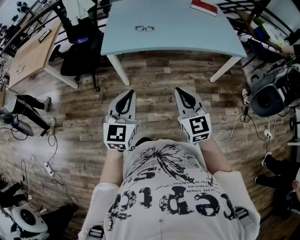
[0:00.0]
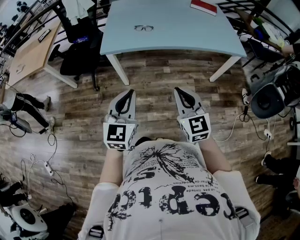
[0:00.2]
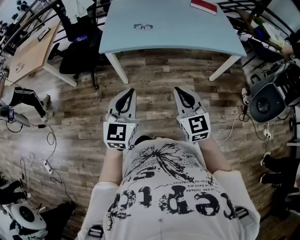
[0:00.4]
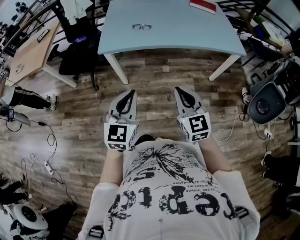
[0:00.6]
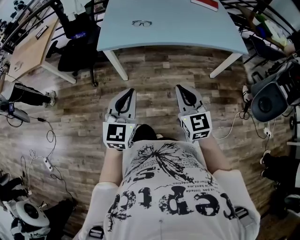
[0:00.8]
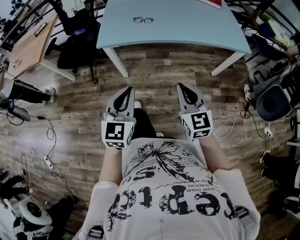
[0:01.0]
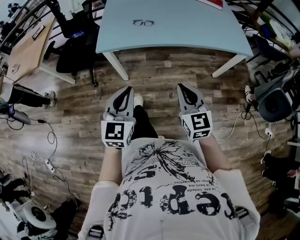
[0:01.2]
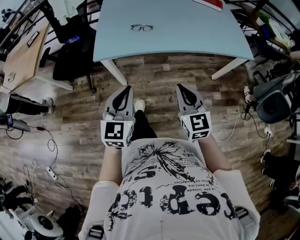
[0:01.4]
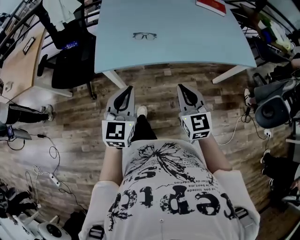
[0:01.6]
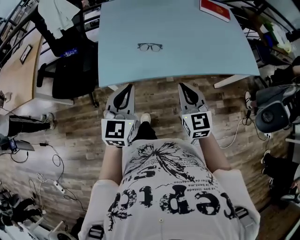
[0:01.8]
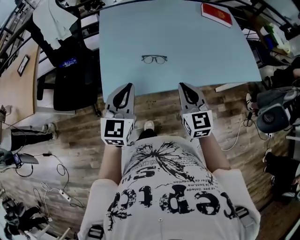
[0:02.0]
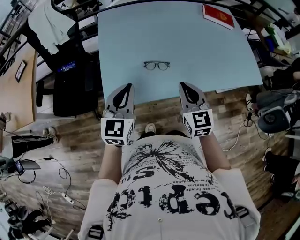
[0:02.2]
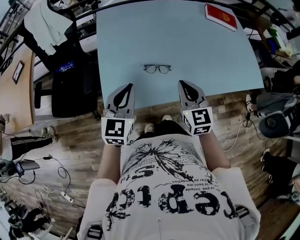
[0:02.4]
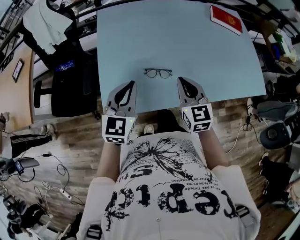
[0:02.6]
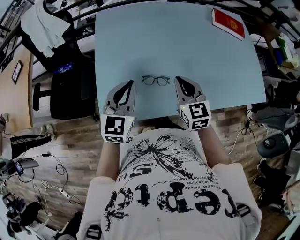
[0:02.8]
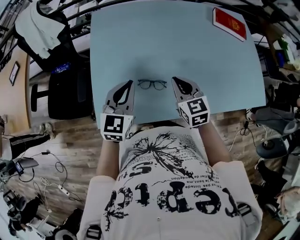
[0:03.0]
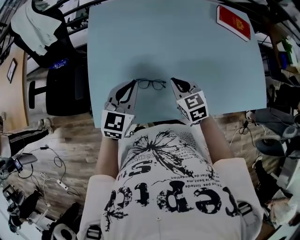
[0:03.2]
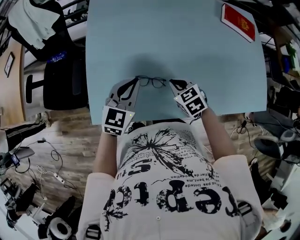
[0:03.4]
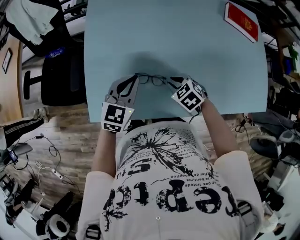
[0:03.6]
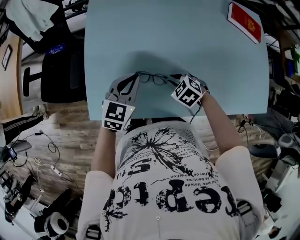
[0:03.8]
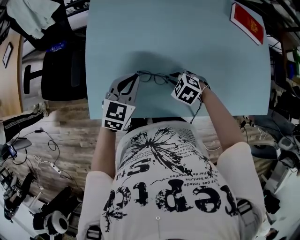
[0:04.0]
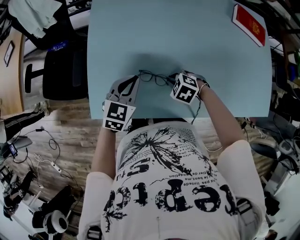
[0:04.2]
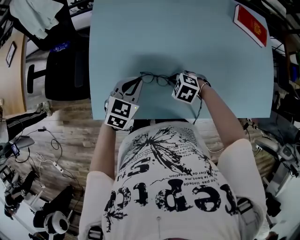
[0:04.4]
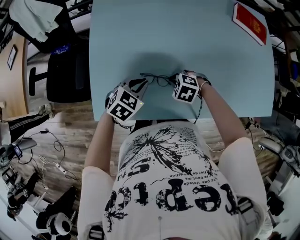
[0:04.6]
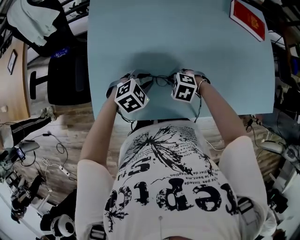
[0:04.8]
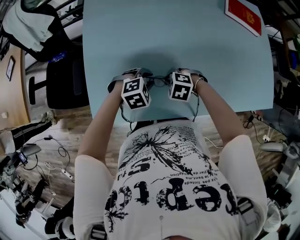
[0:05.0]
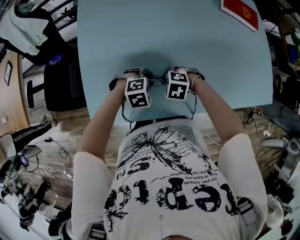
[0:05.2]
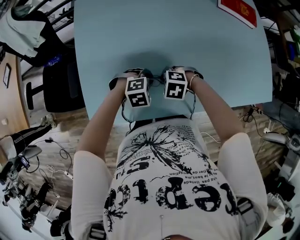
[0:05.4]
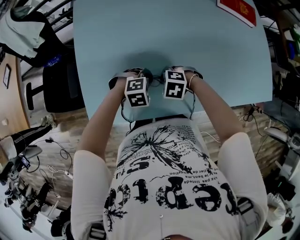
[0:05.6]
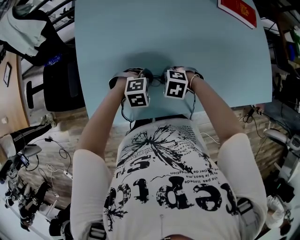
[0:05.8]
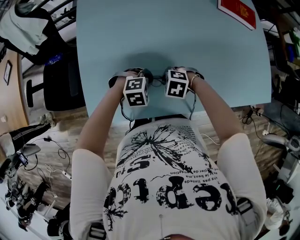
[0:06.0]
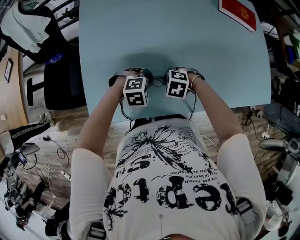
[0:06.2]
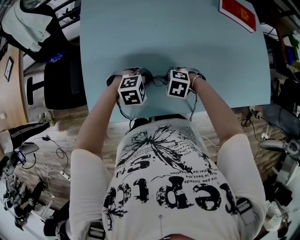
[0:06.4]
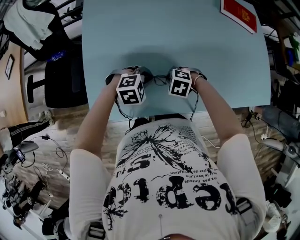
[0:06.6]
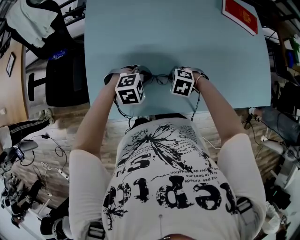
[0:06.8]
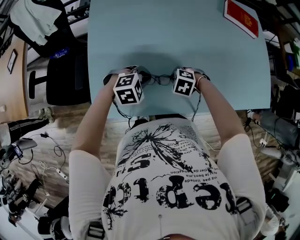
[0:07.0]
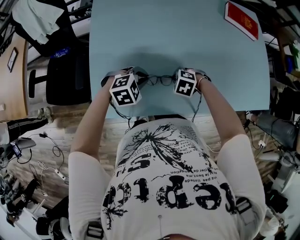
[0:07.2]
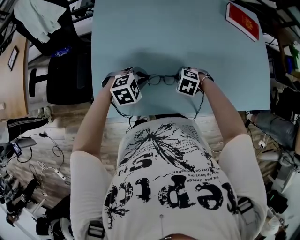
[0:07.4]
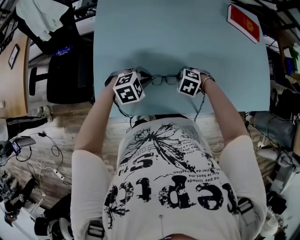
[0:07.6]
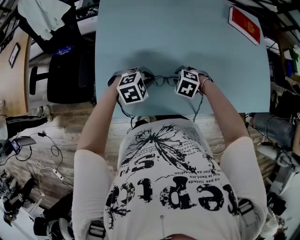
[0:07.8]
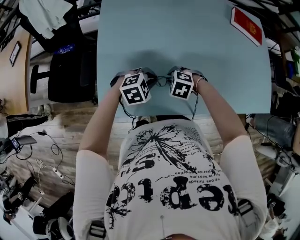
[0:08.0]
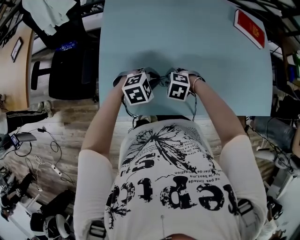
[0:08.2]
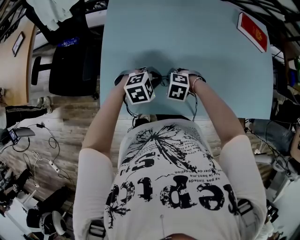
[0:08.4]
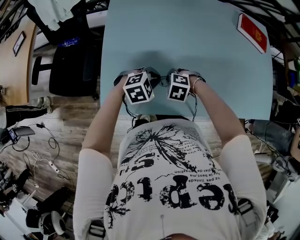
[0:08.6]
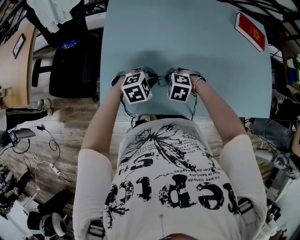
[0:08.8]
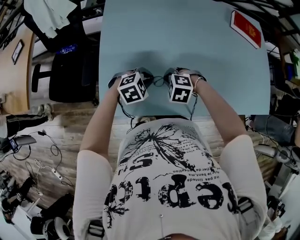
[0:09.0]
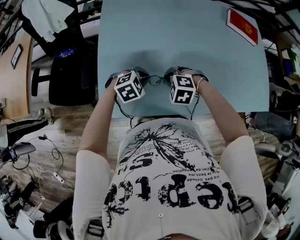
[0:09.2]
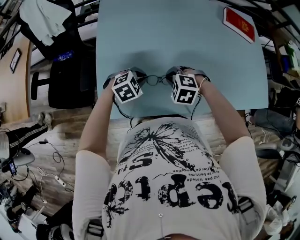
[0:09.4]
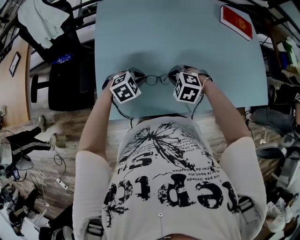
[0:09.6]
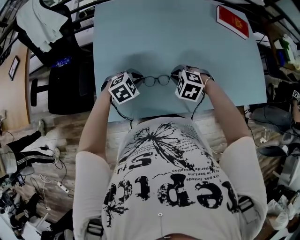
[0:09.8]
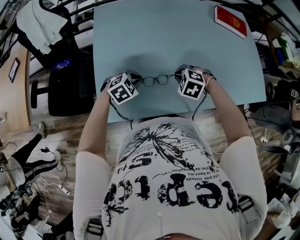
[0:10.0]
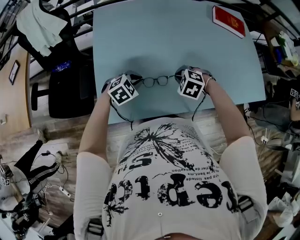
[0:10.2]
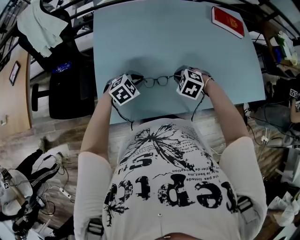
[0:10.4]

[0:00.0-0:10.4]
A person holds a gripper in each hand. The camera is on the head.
0:00.0 to 0:01.4: Both grippers move forward, some 15 cm.
0:01.4 to 0:03.0: Both grippers are carried forward, approximately 50 cm.
0:03.0 to 0:04.4: The two grippers go some 15 cm downward. The left gripper rotates some 20 degrees. Meanwhile the right gripper tips its fingers downward by some 40 degrees.
0:04.4 to 0:06.0: The left gripper moves about 15 cm, and rotates approximately 60 degrees.
0:06.0 to 0:07.4: The left gripper changes place by some 10 cm.
0:07.4 to 0:09.0: The right gripper changes place by roughly 10 cm.
0:09.0 to 0:10.4: The right gripper travels to the right by roughly 5 cm.

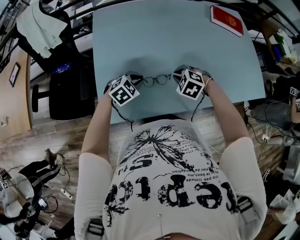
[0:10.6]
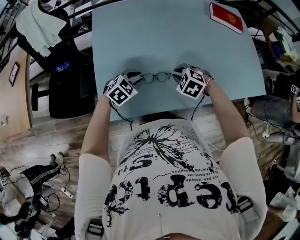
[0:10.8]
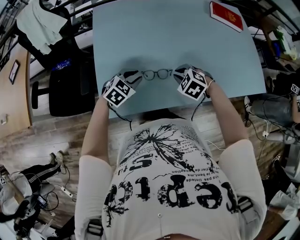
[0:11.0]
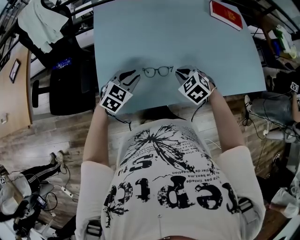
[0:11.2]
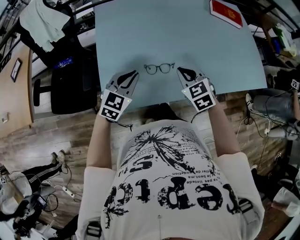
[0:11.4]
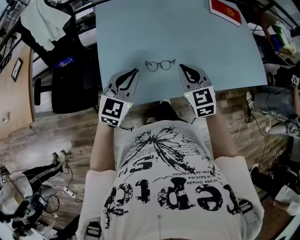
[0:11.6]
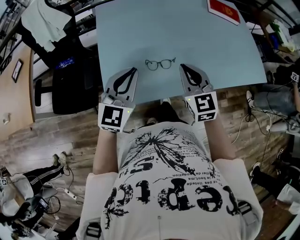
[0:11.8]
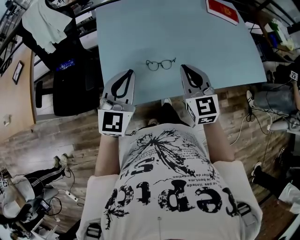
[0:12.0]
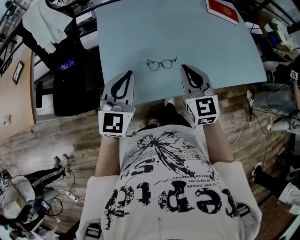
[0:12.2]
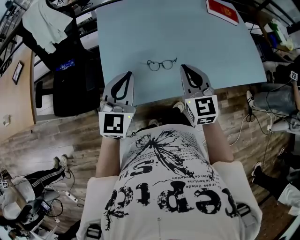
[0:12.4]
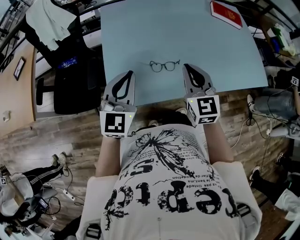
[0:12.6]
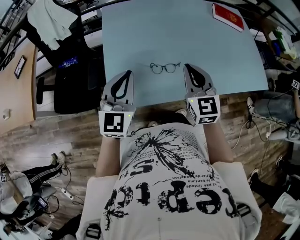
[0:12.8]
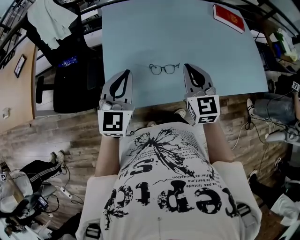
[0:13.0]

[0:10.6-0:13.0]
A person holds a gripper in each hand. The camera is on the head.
0:10.6 to 0:11.8: Both grippers travel together upward and backward, approximately 20 cm. The left gripper points its fingers roughly 40 degrees further upward; the right gripper tips its fingers upward by some 50 degrees.
0:11.8 to 0:13.0: The grippers stay close to where they were, moving slightly.

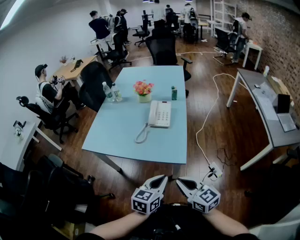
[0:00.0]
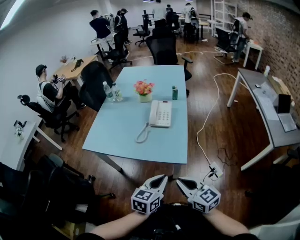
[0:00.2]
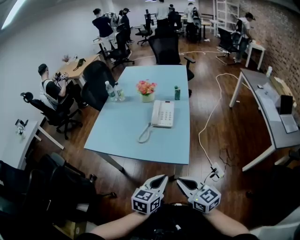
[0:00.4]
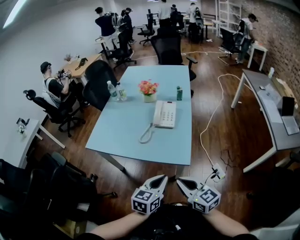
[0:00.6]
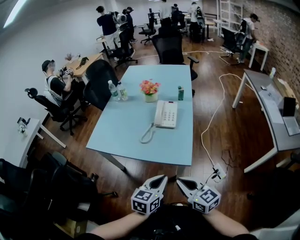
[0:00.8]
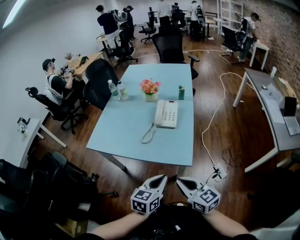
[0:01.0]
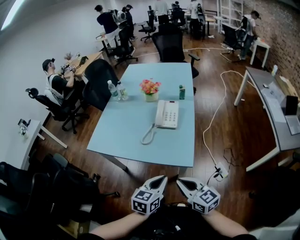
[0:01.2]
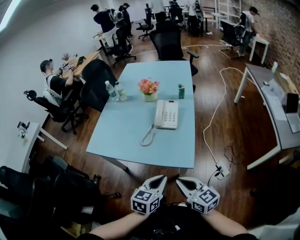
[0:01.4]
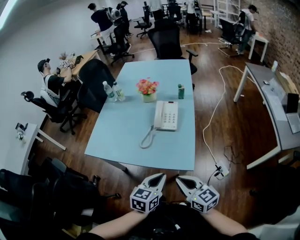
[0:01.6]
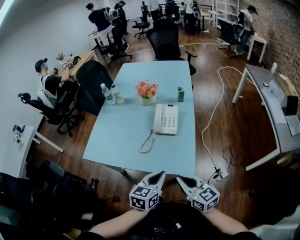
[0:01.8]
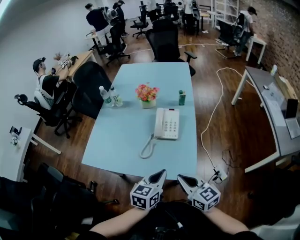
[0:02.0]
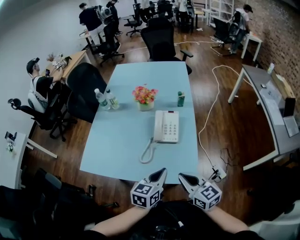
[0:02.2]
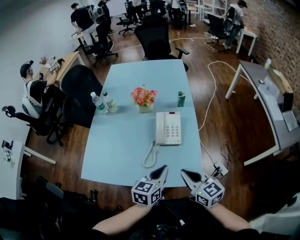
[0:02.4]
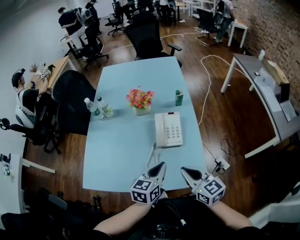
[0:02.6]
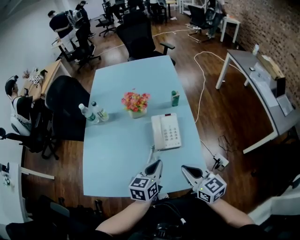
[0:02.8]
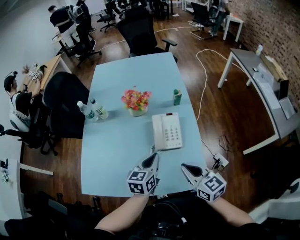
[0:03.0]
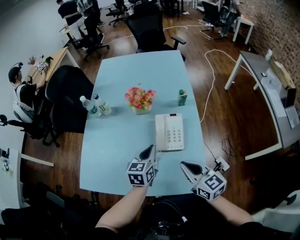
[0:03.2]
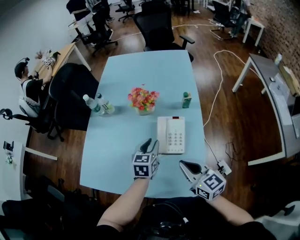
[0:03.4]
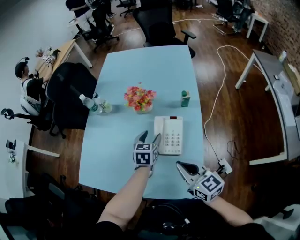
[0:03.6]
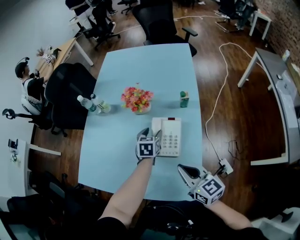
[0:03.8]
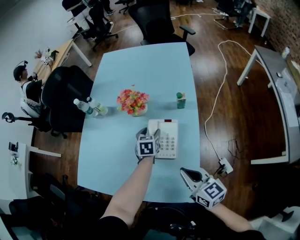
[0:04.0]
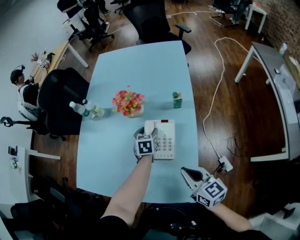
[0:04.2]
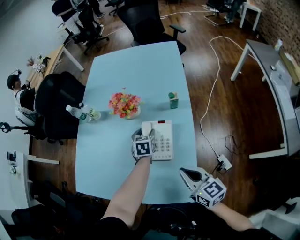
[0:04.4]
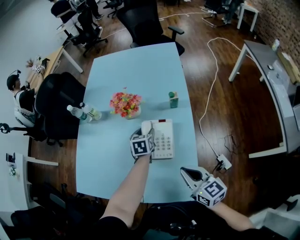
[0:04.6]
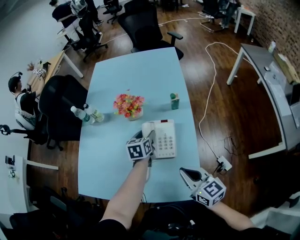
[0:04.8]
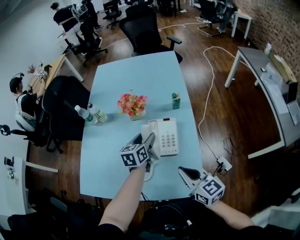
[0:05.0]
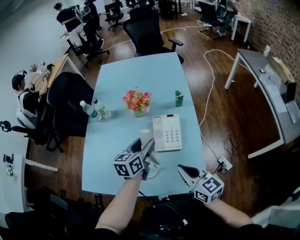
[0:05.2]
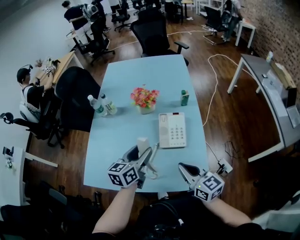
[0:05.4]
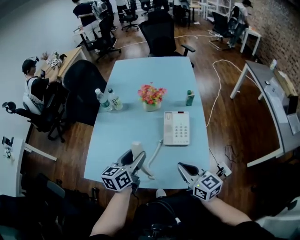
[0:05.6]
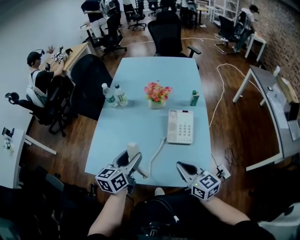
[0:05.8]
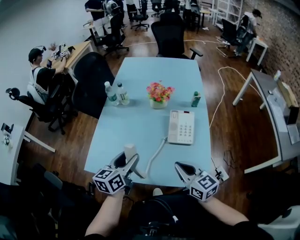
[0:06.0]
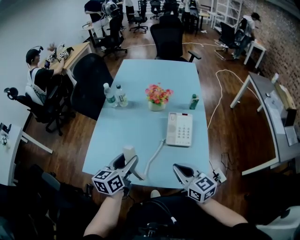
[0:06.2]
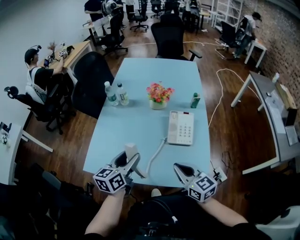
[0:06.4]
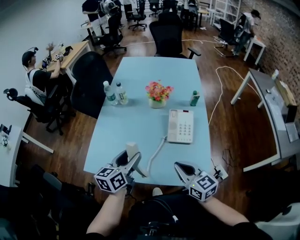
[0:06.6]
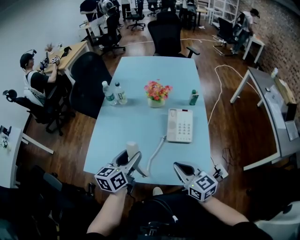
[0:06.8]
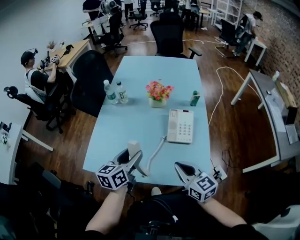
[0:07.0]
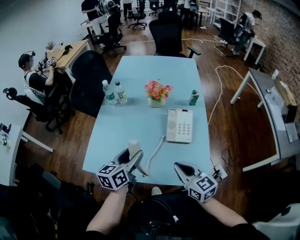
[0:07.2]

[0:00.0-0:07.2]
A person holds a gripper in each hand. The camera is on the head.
0:00.0 to 0:01.4: The left gripper changes place by about 5 cm; the right gripper ends up about 5 cm from where it was.
0:01.4 to 0:02.8: Both grippers move forward, some 25 cm.
0:02.8 to 0:04.4: The left gripper is displaced forward and downward by approximately 30 cm, turns by some 30 degrees, and opens. The right gripper goes some 15 cm to the right and forward.
0:04.4 to 0:05.8: The left gripper goes some 35 cm backward, to the left and upward, and points its fingers approximately 30 degrees further upward. The right gripper goes approximately 20 cm to the left and backward.
0:05.8 to 0:07.2: The grippers make only small movements.

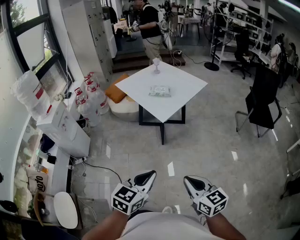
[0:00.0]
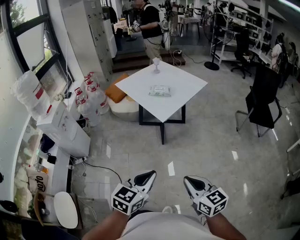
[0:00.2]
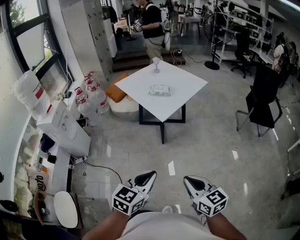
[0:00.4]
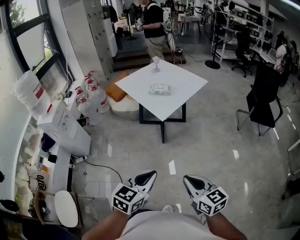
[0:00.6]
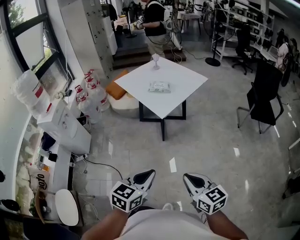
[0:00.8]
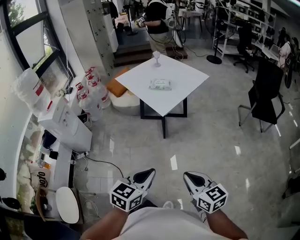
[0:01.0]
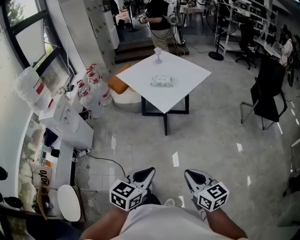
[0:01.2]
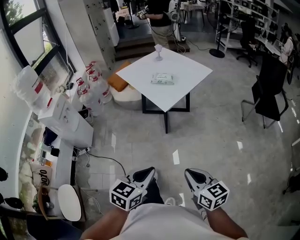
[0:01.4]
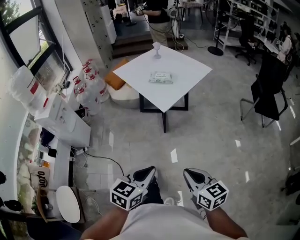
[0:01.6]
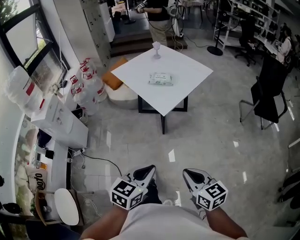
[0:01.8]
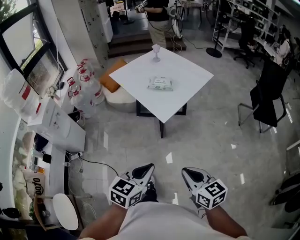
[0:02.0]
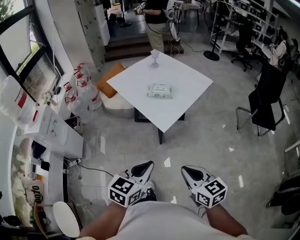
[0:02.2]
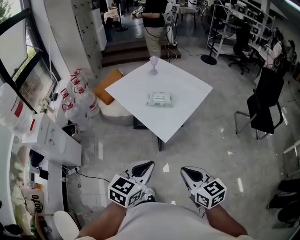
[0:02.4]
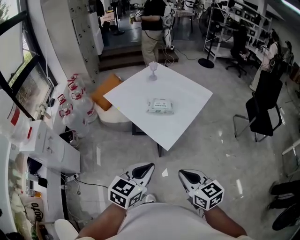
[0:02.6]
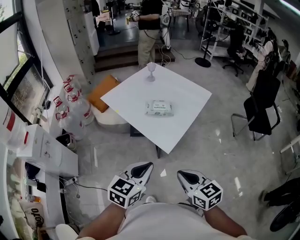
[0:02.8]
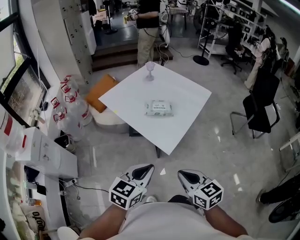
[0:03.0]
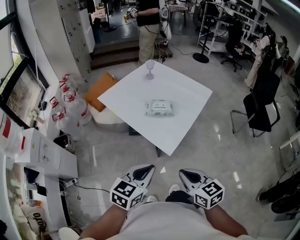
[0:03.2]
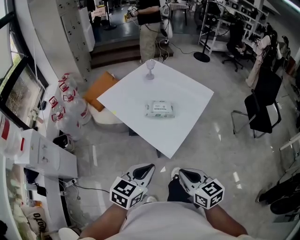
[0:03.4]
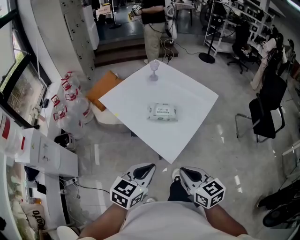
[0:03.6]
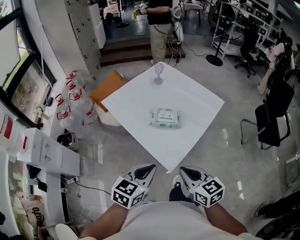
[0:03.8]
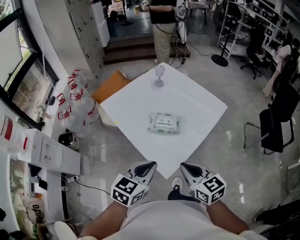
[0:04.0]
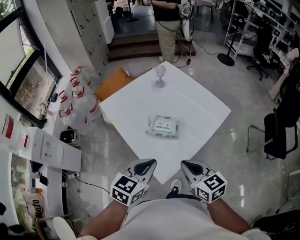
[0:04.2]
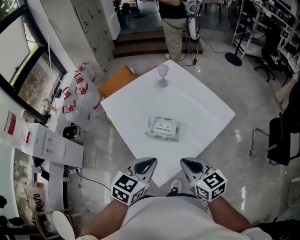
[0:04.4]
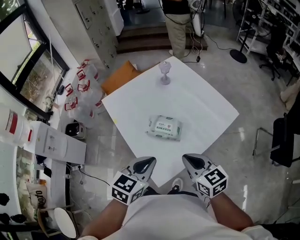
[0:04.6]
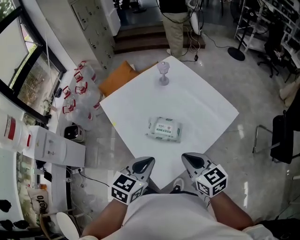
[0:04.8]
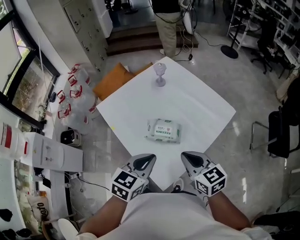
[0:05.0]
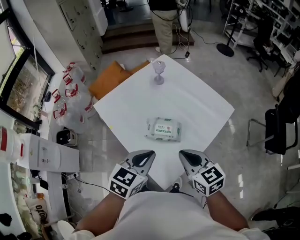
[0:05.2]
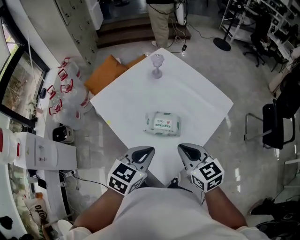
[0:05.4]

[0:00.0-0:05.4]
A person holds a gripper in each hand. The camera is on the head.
0:00.0 to 0:01.4: The grippers make only small movements.
0:01.4 to 0:02.8: The right gripper shifts some 30 cm forward and to the left. The left gripper moves forward, about 30 cm.
0:02.8 to 0:04.0: Both grippers travel together forward, approximately 20 cm.
0:04.0 to 0:05.4: Both grippers move forward, about 15 cm.
